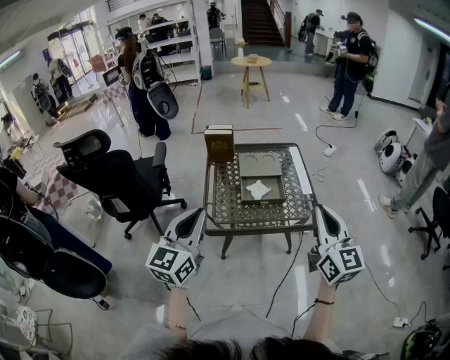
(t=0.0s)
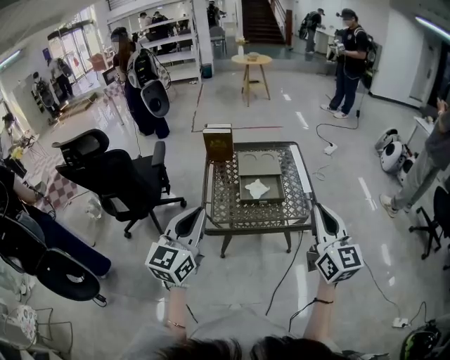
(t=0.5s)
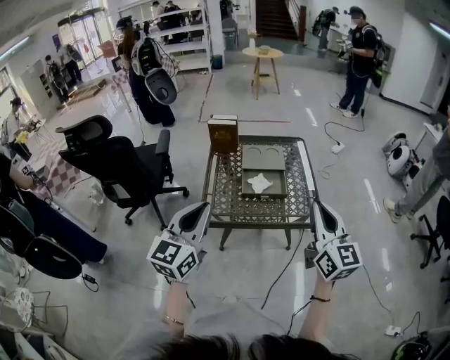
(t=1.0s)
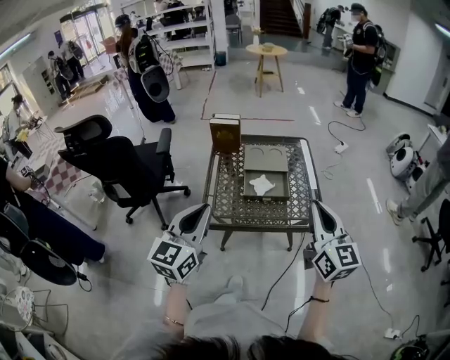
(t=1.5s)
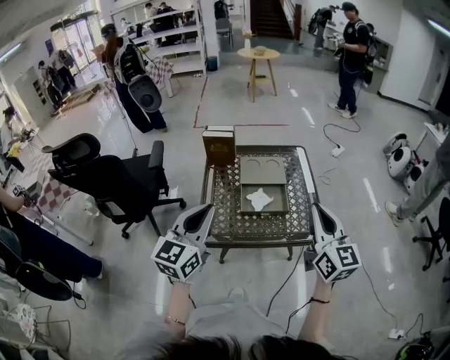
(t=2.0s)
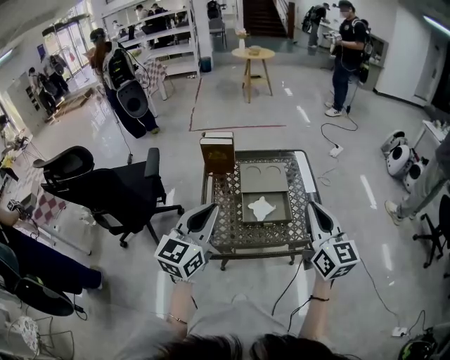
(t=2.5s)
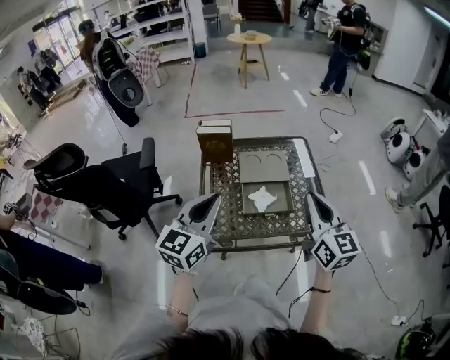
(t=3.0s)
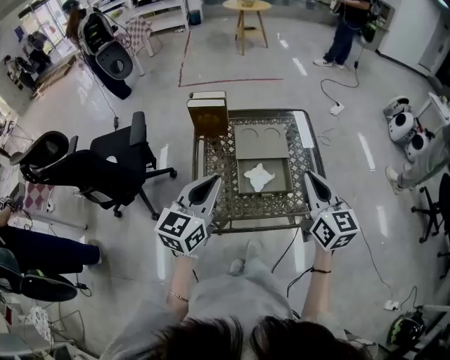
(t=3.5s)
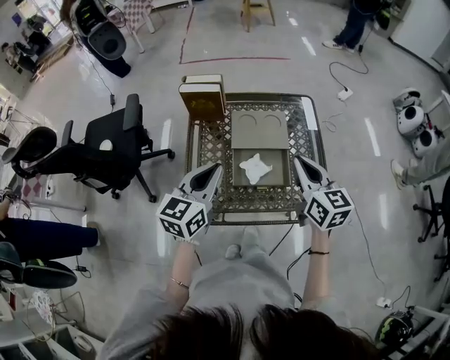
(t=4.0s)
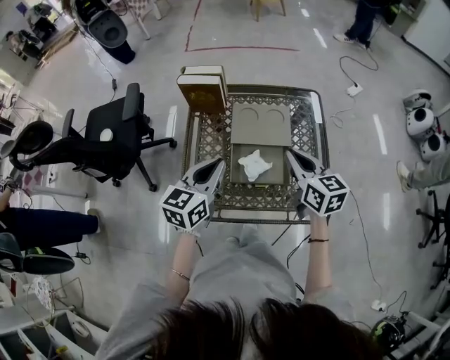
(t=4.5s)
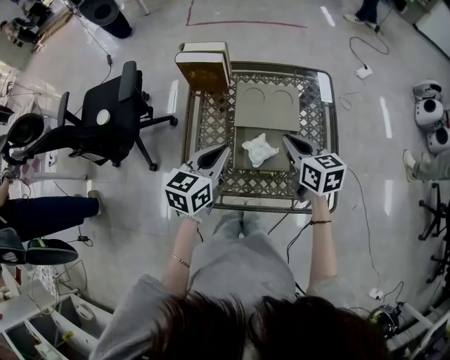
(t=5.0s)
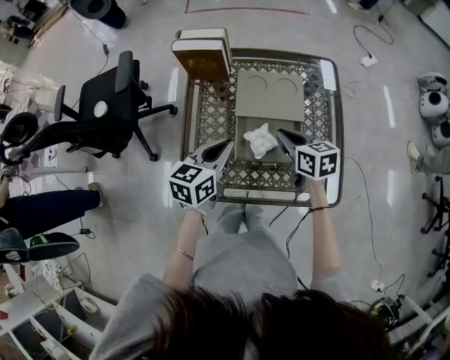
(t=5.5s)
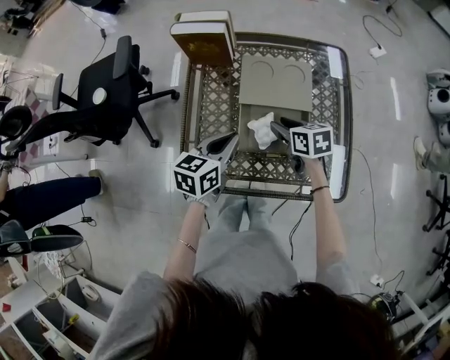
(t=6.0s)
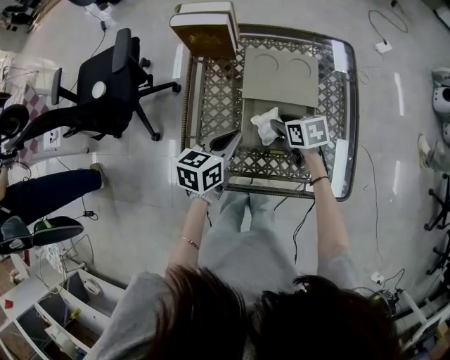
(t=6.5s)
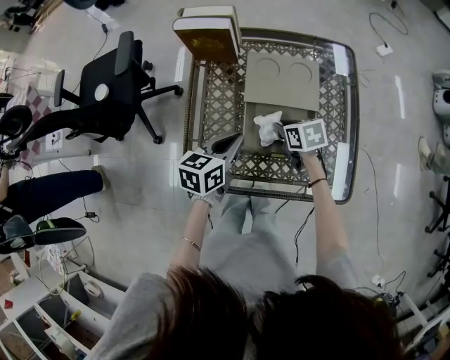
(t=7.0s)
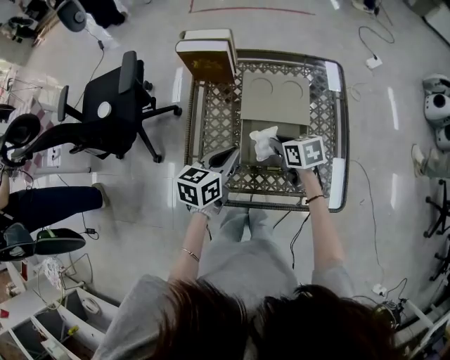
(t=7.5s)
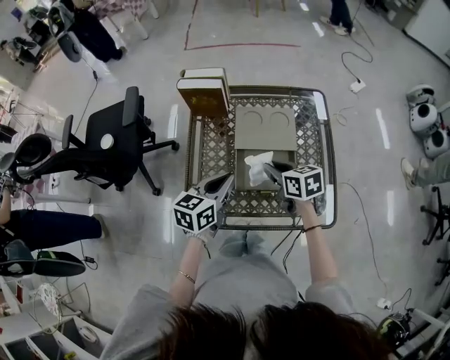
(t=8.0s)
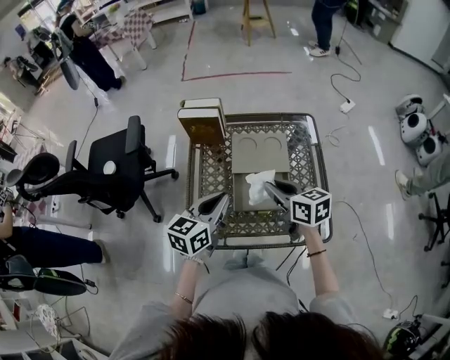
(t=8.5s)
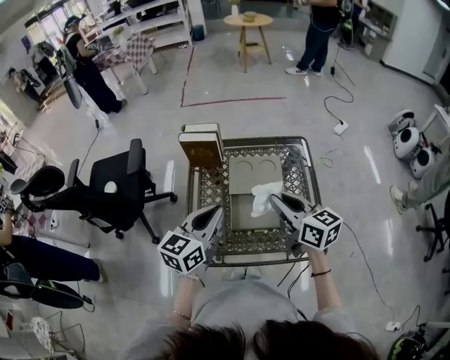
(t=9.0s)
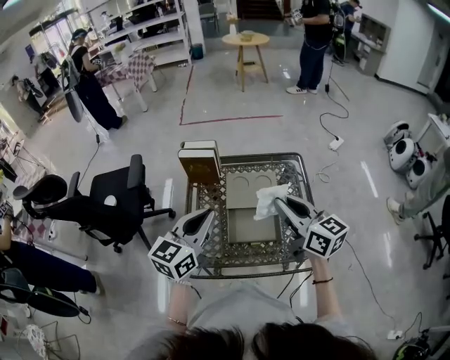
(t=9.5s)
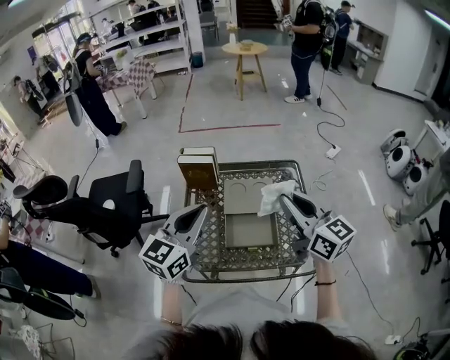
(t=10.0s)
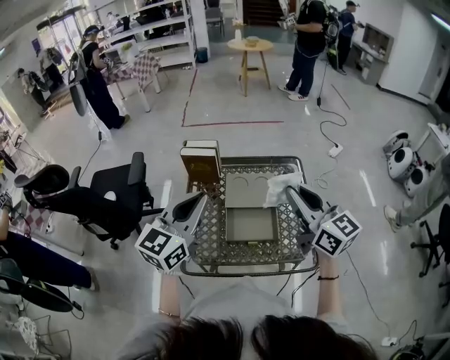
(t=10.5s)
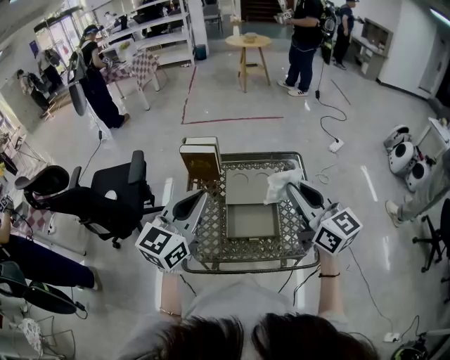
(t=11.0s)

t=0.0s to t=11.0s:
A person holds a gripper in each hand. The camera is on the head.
t=0.0s to t=2.0s: The grippers both shift forward by approximately 10 cm.
t=2.0s to t=3.5s: Both grippers move forward and downward, roughly 15 cm.
t=3.5s to t=5.5s: Both grippers travel together downward and forward, roughly 20 cm. The right gripper turns by roughly 40 degrees. Meanwhile the left gripper changes its angle by some 20 degrees.
t=5.5s to t=7.5s: The right gripper shifts roughly 5 cm downward, and opens and closes again.
t=7.5s to t=9.0s: The grippers both shift upward by about 20 cm. The right gripper tilts its fingers approximately 40 degrees upward. The left gripper swivels about 20 degrees.
t=9.0s to t=11.0s: Both grippers travel together upward, some 10 cm. The right gripper swivels some 20 degrees.

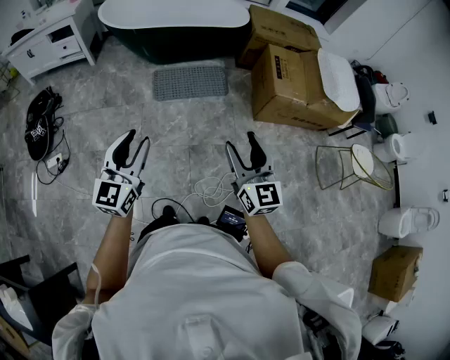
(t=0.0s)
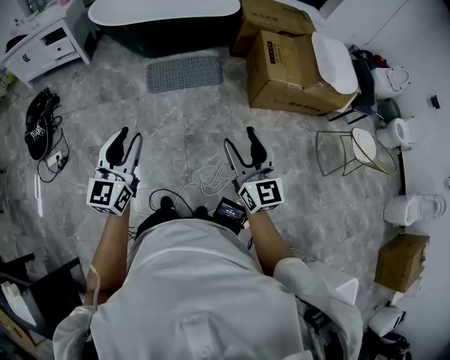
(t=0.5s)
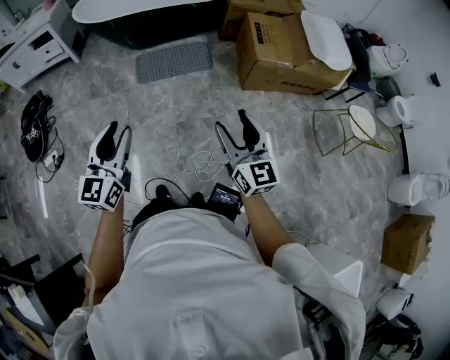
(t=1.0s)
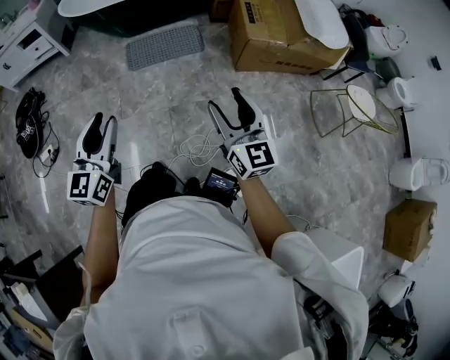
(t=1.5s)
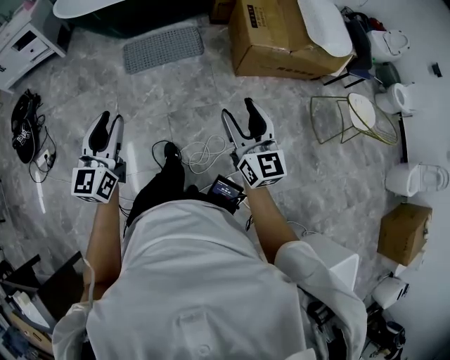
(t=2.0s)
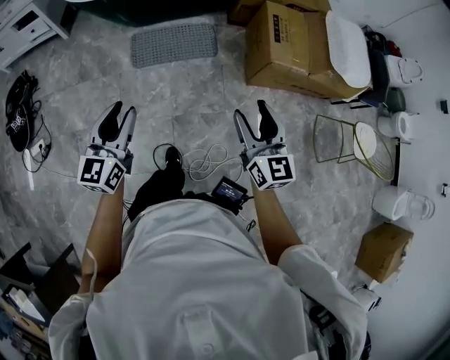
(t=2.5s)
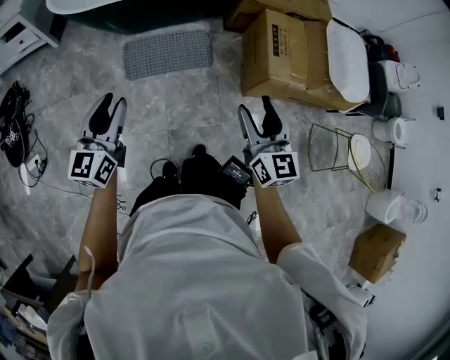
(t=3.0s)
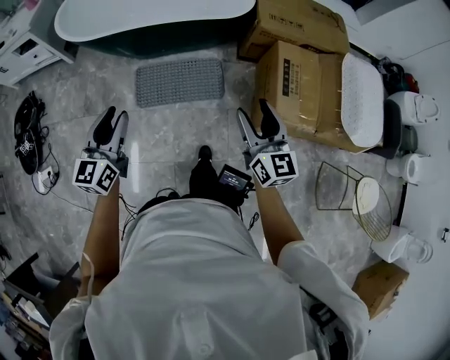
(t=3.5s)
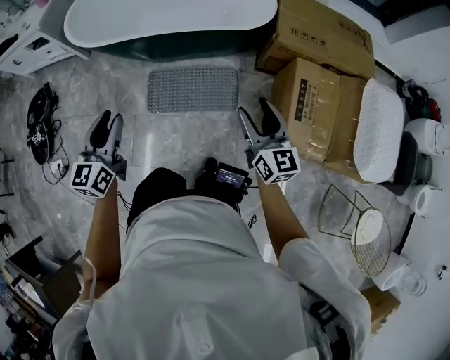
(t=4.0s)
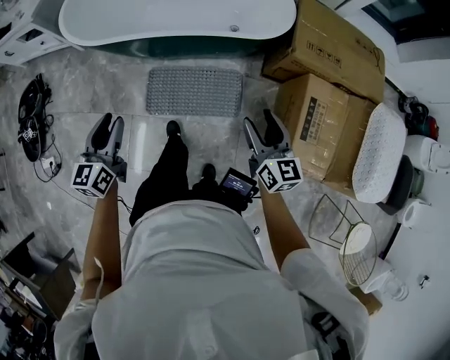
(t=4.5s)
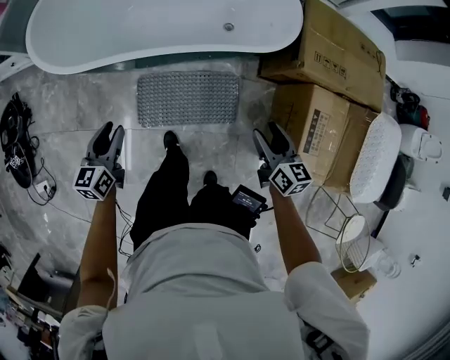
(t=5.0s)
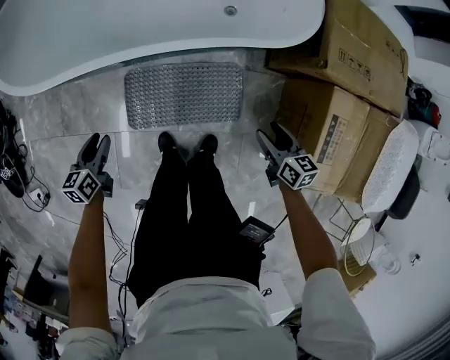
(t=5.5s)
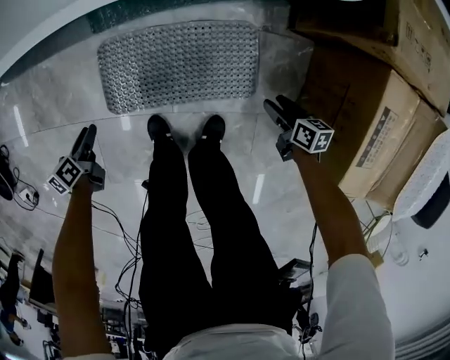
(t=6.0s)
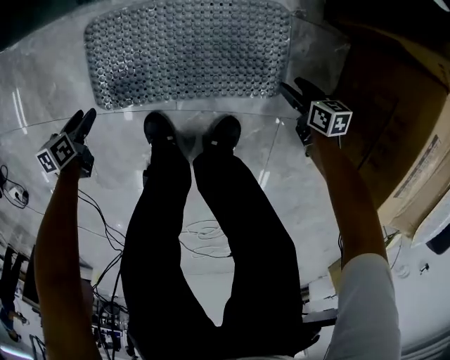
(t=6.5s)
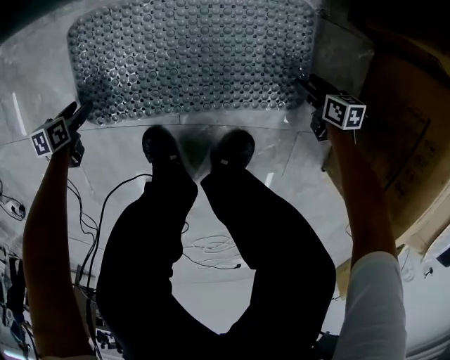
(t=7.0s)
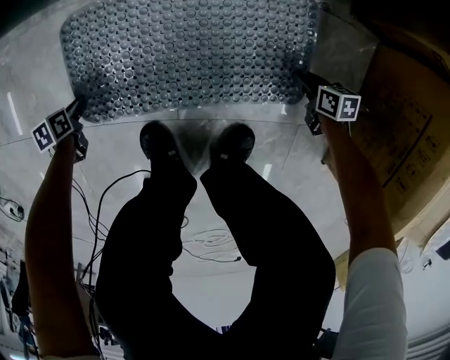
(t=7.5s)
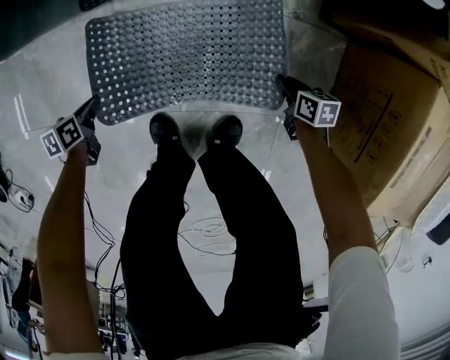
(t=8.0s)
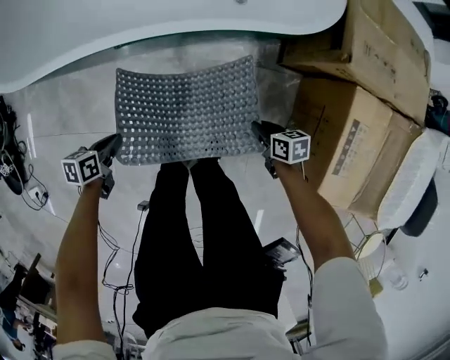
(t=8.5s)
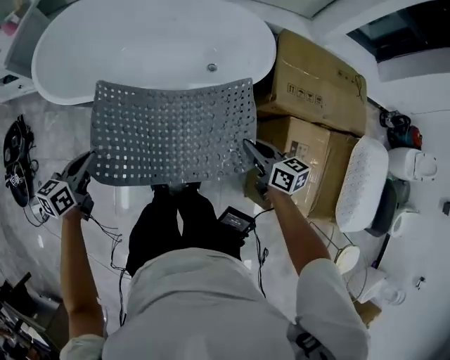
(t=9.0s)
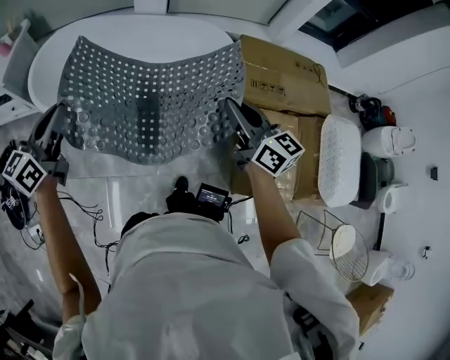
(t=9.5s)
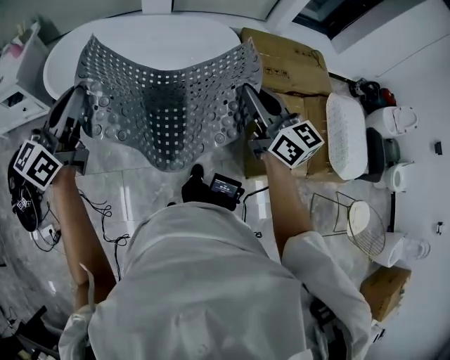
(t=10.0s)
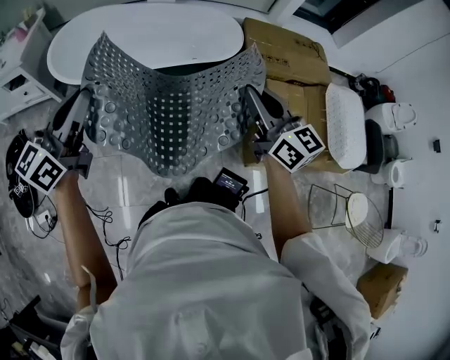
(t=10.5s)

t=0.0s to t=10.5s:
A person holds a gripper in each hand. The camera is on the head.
t=0.0s to t=2.0s: The grippers both shift to the right by about 15 cm.
t=2.0s to t=4.0s: Both grippers are carried forward, approximately 60 cm.
t=4.0s to t=6.5s: Both grippers move downward, some 80 cm. The right gripper angles its fingers downward, by approximately 50 degrees. Meanwhile the left gripper tips its fingers downward by roughly 50 degrees, and opens up.
t=6.5s to t=8.5s: The two grippers go roughly 30 cm upward. The left gripper closes its fingers. The right gripper closes up.
t=8.5s to t=10.5s: The grippers both shift upward by some 70 cm. The left gripper angles its fingers upward, by some 50 degrees; the right gripper tilts its fingers roughly 50 degrees upward.

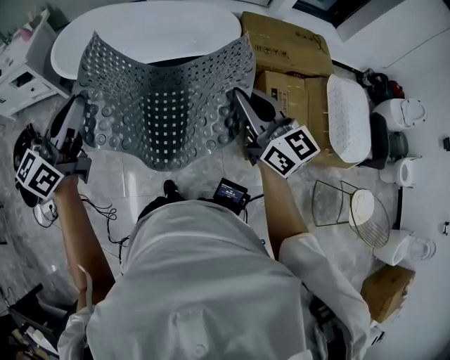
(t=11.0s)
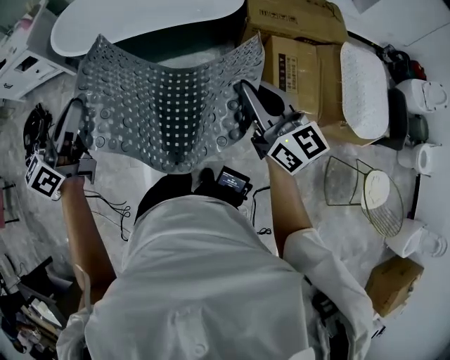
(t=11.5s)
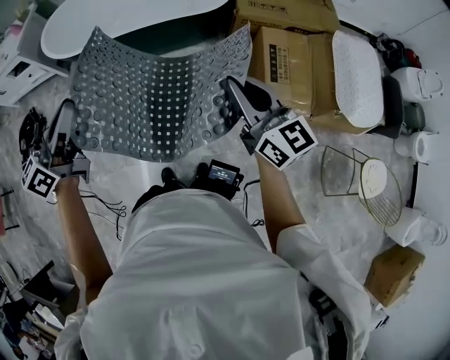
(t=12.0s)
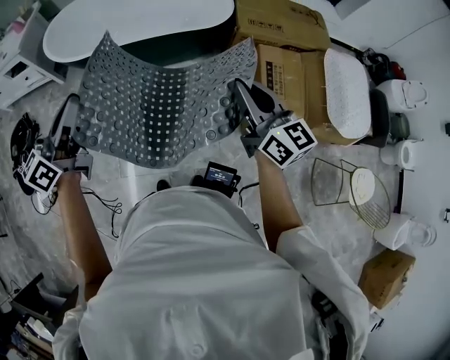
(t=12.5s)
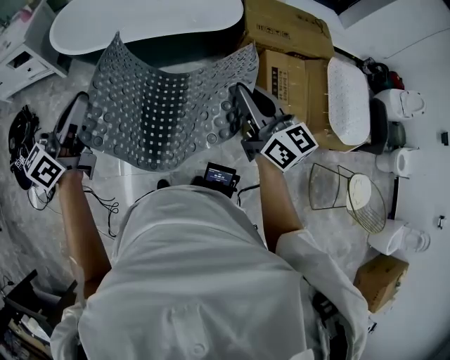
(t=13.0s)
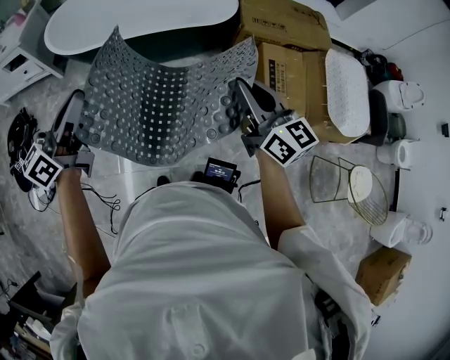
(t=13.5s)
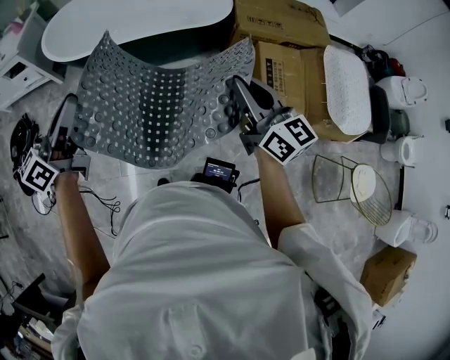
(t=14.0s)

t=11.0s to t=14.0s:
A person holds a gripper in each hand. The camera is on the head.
t=11.0s to t=12.5s: The two grippers go about 15 cm backward, to the right and downward.
t=12.5s to t=14.0s: The grippers make only small movements.

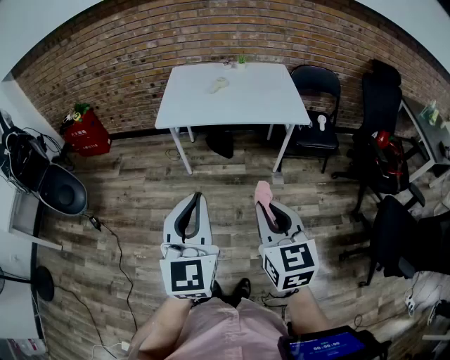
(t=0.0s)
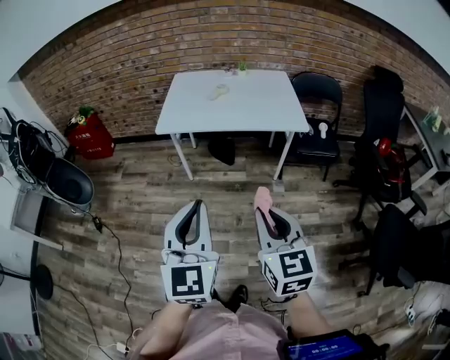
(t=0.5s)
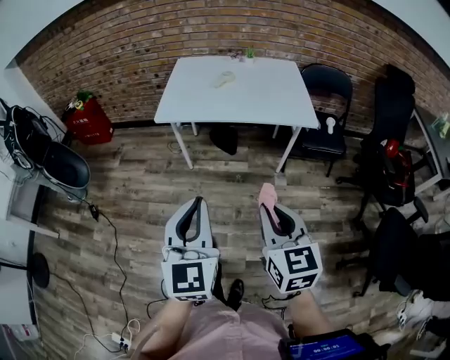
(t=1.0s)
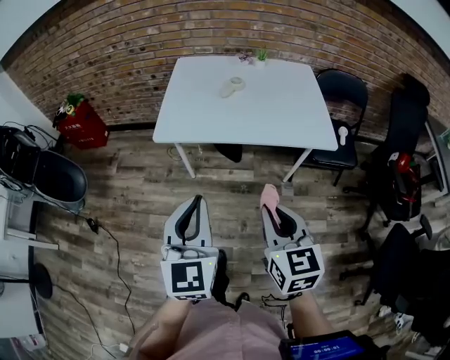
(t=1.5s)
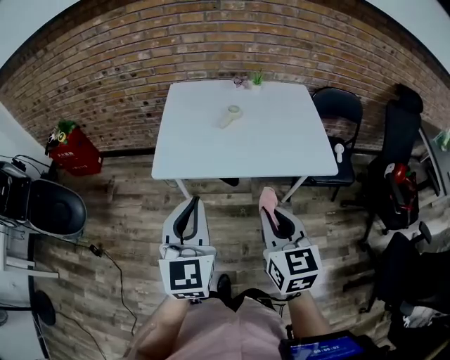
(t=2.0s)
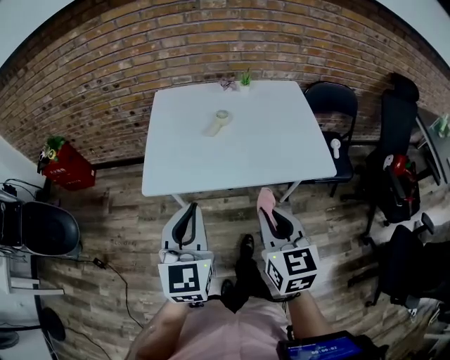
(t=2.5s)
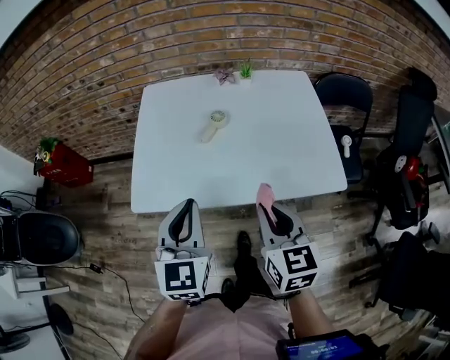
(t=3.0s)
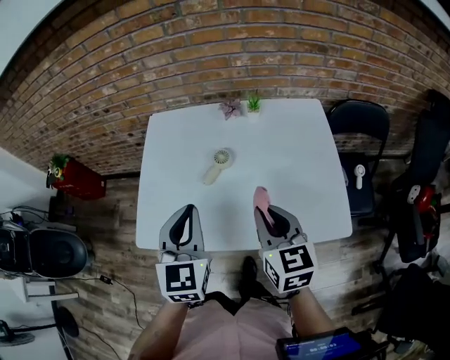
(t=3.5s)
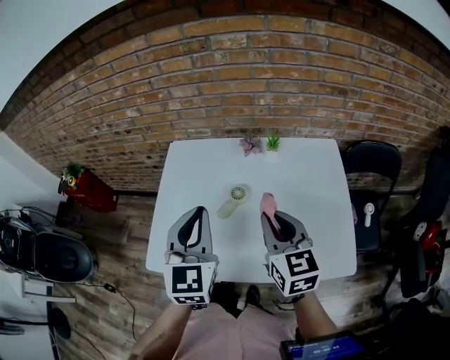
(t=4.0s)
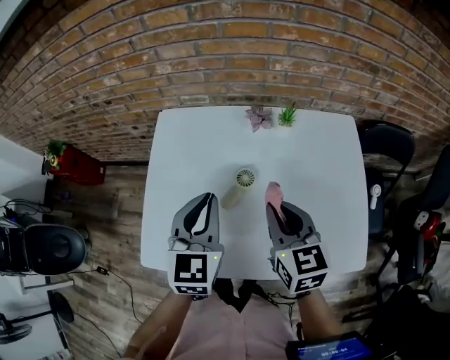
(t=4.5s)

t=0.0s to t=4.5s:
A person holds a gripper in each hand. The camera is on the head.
t=0.0s to t=2.0s: Both grippers move forward, some 30 cm.
t=2.0s to t=4.5s: Both grippers are carried forward, approximately 40 cm.
